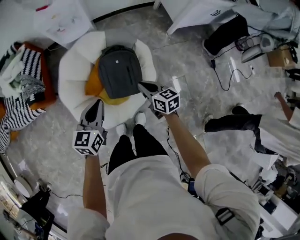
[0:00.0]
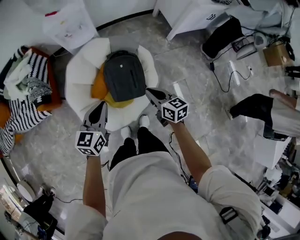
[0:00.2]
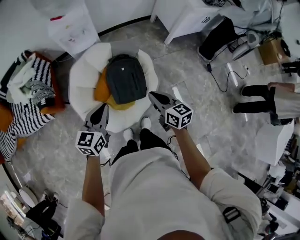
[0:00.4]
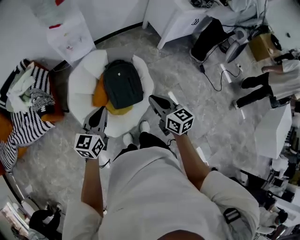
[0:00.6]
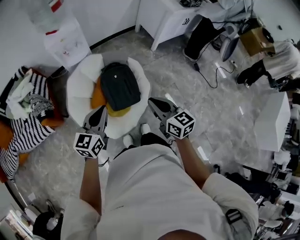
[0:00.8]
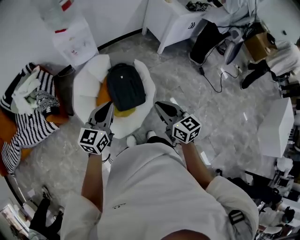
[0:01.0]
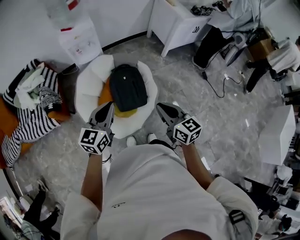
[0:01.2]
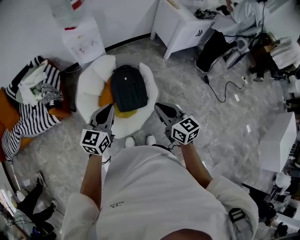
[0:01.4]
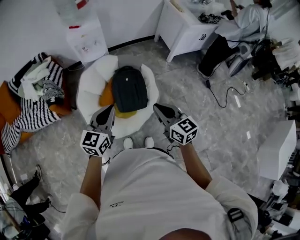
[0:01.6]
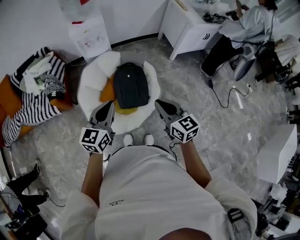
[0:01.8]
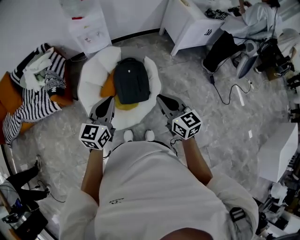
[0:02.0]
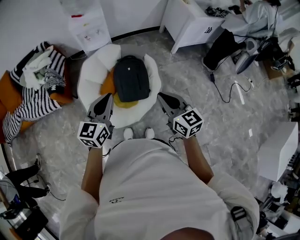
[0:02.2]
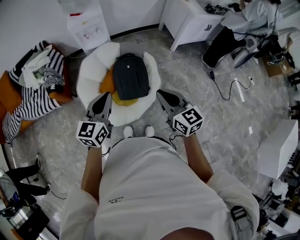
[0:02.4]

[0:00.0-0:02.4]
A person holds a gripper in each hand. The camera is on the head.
0:00.0 to 0:01.2: The right gripper goes approximately 30 cm upward and backward, and changes its angle by about 20 degrees, while the left gripper moves upward and backward, about 20 cm.
0:01.2 to 0:02.4: The grippers stay close to where they were, moving slightly.

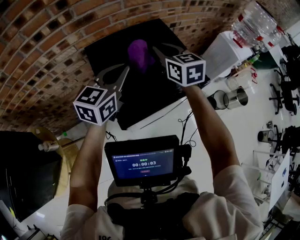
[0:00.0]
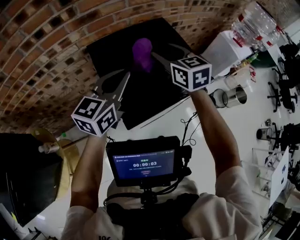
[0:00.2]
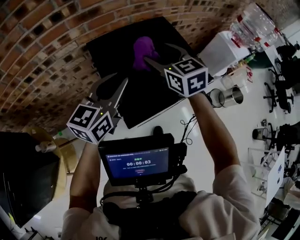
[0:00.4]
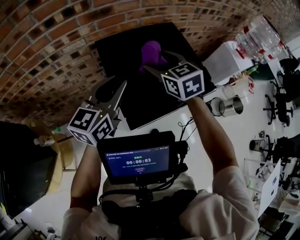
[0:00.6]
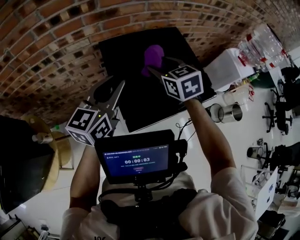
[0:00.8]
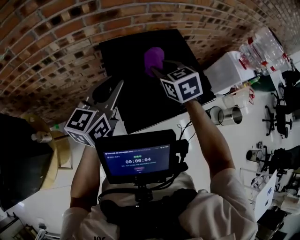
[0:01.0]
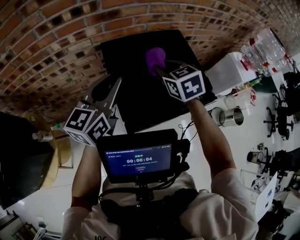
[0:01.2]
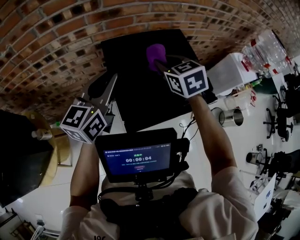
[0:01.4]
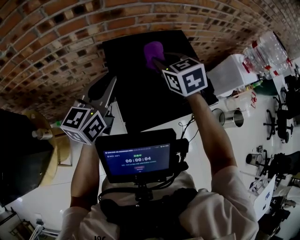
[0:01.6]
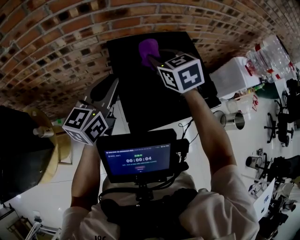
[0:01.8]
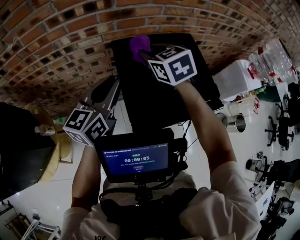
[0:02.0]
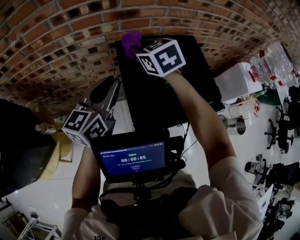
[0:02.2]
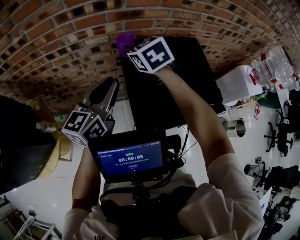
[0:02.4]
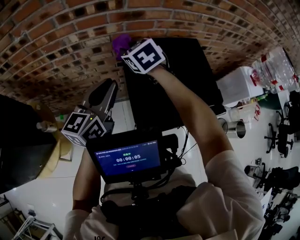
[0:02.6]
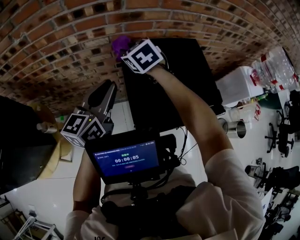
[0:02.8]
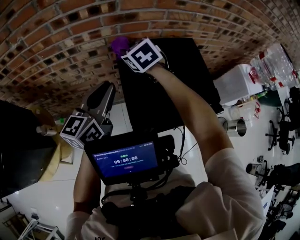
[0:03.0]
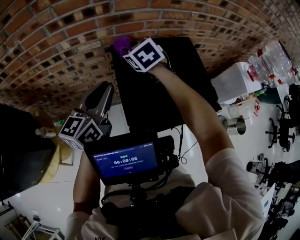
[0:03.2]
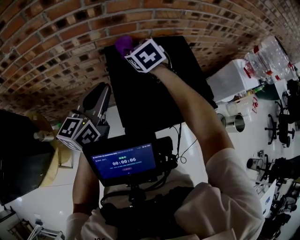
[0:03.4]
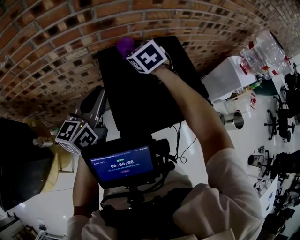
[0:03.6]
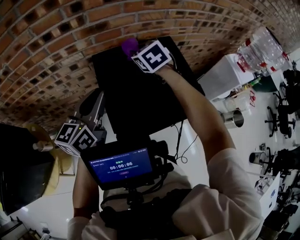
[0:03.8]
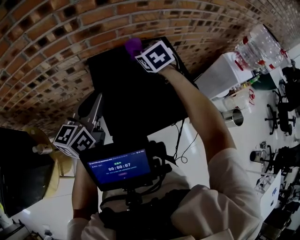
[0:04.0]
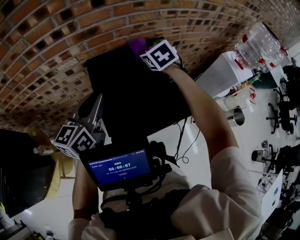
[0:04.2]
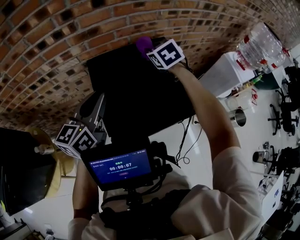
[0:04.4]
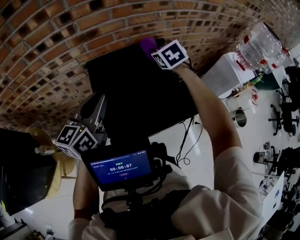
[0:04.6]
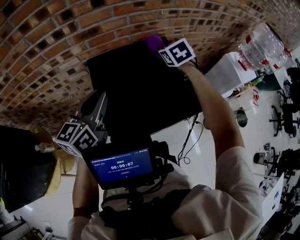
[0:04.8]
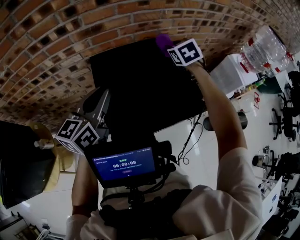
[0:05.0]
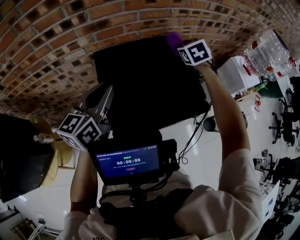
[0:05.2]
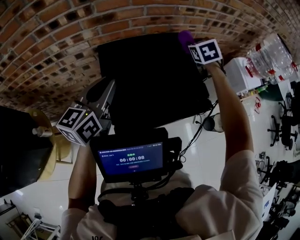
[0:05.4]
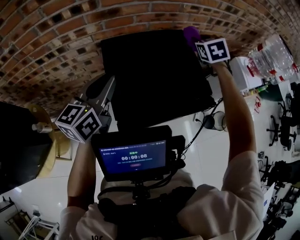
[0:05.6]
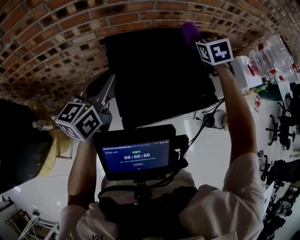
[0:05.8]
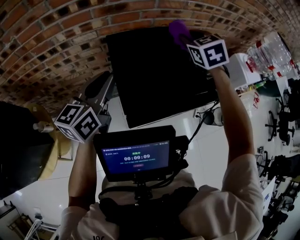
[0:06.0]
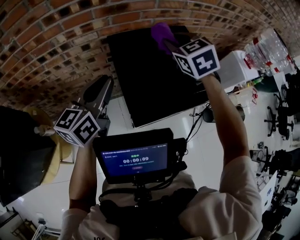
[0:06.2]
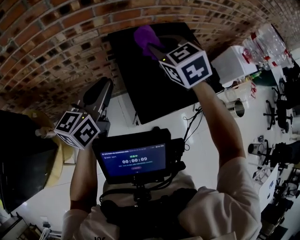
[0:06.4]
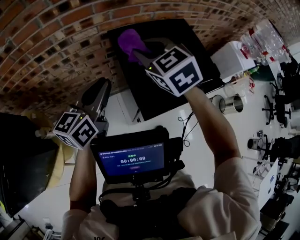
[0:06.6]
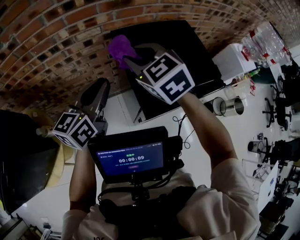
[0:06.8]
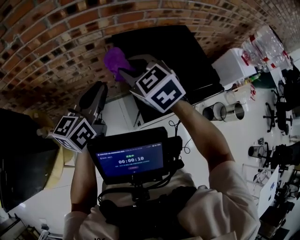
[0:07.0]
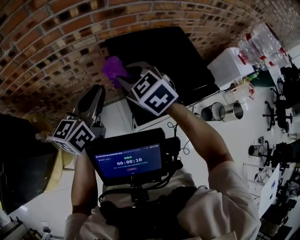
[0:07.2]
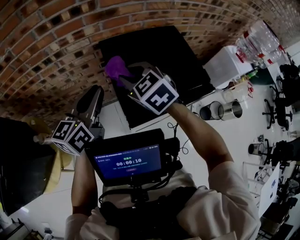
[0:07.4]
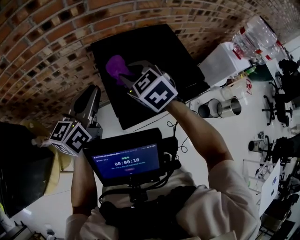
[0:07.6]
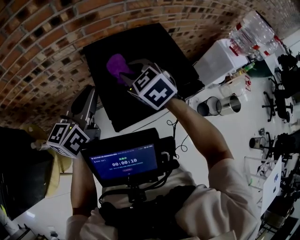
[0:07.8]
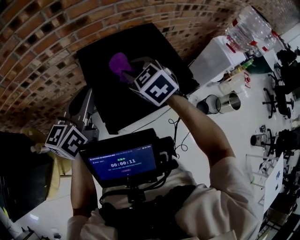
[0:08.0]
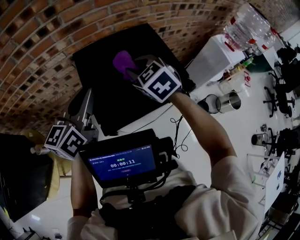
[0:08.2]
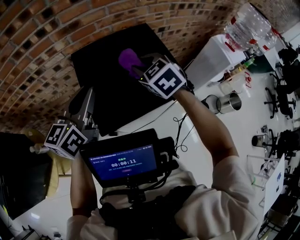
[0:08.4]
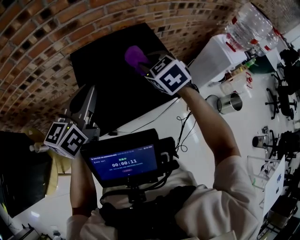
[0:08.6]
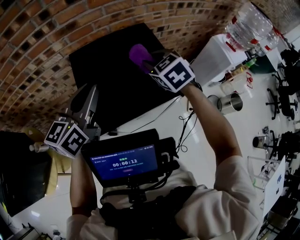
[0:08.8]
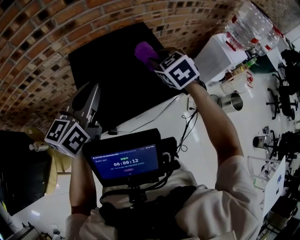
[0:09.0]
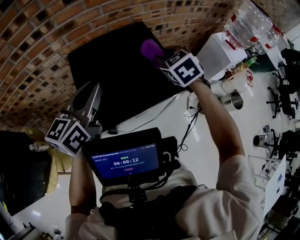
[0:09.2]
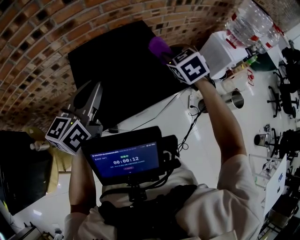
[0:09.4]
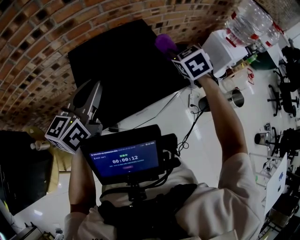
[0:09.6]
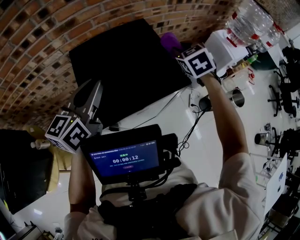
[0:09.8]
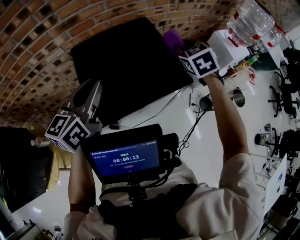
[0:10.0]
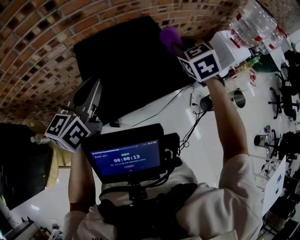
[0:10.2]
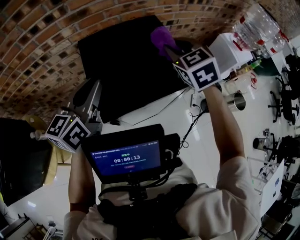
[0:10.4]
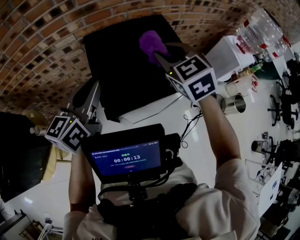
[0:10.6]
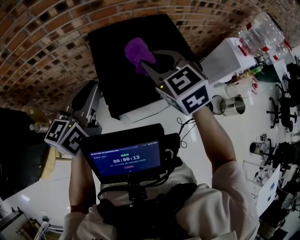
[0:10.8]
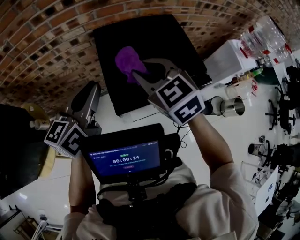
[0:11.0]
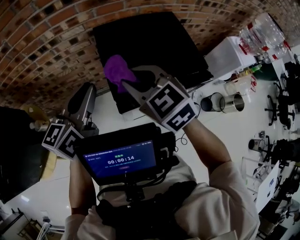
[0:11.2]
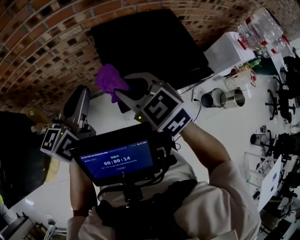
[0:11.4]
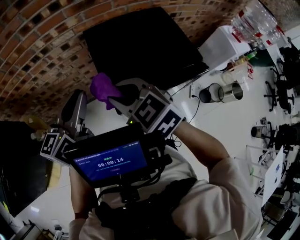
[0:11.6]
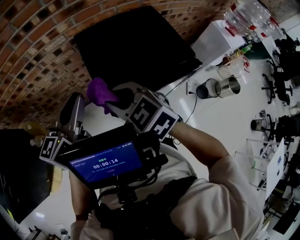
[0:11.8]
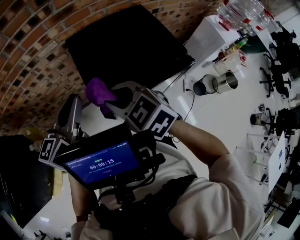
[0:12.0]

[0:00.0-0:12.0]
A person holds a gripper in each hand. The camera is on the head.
0:00.0 to 0:01.6: Both grippers travel together to the left, about 10 cm. The right gripper turns by roughly 20 degrees, and opens, then closes again. Meanwhile the left gripper changes its angle by about 20 degrees.
0:01.6 to 0:03.0: The right gripper heads to the left and forward, covering about 15 cm.
0:03.0 to 0:04.4: The left gripper goes approximately 5 cm to the right; the right gripper shifts approximately 20 cm to the right.
0:04.4 to 0:06.0: The left gripper ends up approximately 5 cm from where it was; the right gripper goes about 10 cm upward and backward, and goes to the right and returns, some 10 cm each way.
0:06.0 to 0:07.6: The right gripper heads to the left and backward, covering approximately 20 cm.
0:07.6 to 0:09.0: The left gripper goes roughly 10 cm to the right; the right gripper goes about 20 cm to the right.
0:09.0 to 0:10.4: The right gripper travels upward by some 5 cm, and goes to the right and returns, some 10 cm each way.
0:10.4 to 0:12.0: The right gripper moves to the left and backward, approximately 30 cm, and turns by approximately 30 degrees; the left gripper moves to the left, approximately 10 cm.

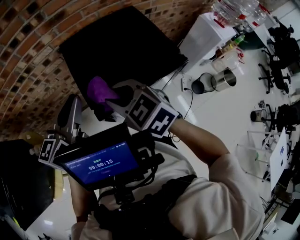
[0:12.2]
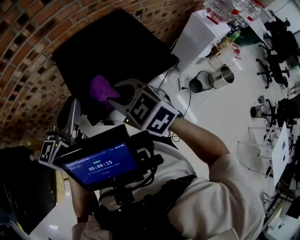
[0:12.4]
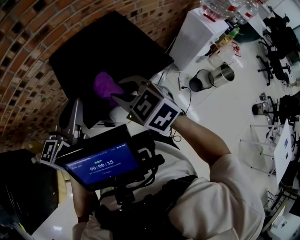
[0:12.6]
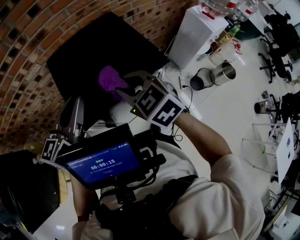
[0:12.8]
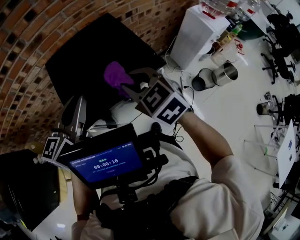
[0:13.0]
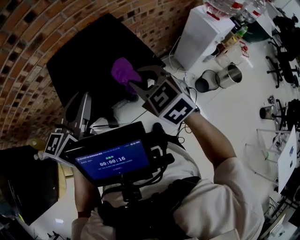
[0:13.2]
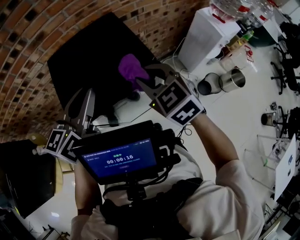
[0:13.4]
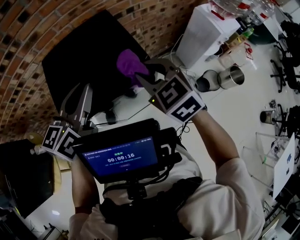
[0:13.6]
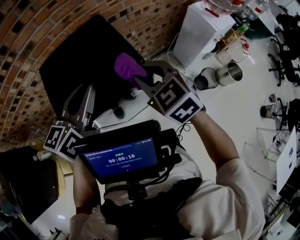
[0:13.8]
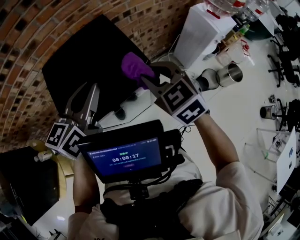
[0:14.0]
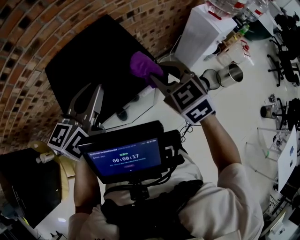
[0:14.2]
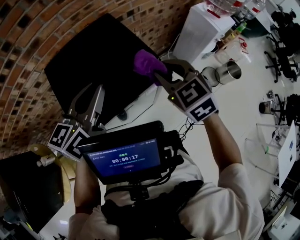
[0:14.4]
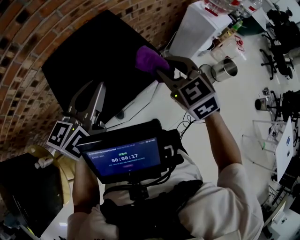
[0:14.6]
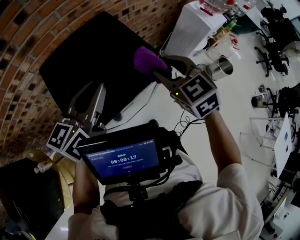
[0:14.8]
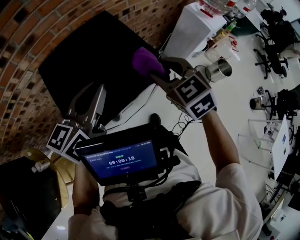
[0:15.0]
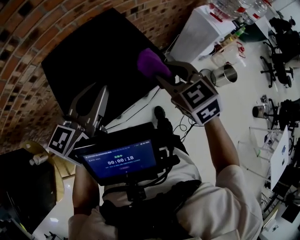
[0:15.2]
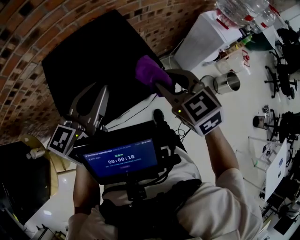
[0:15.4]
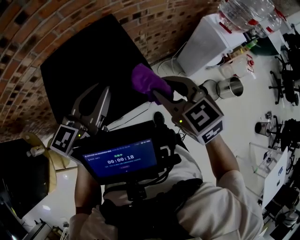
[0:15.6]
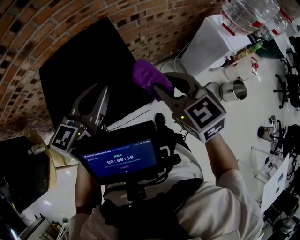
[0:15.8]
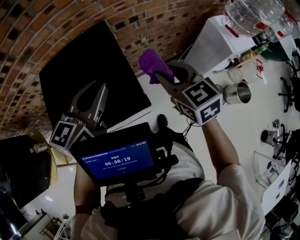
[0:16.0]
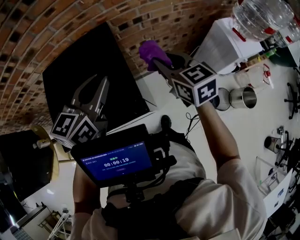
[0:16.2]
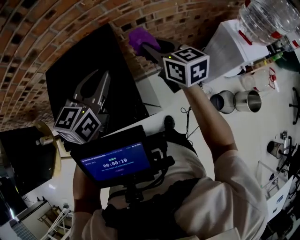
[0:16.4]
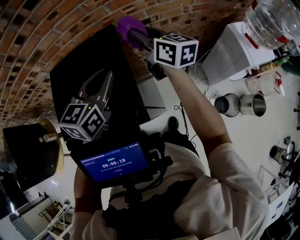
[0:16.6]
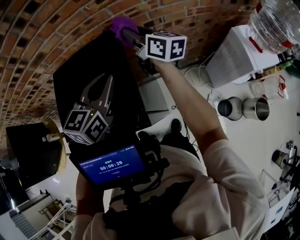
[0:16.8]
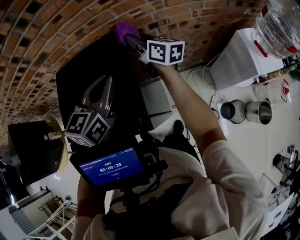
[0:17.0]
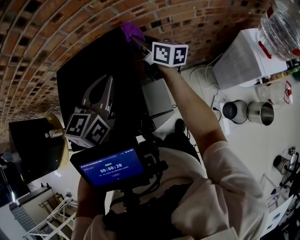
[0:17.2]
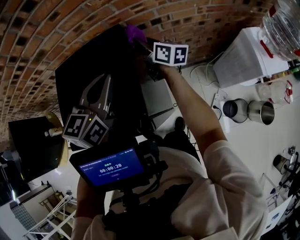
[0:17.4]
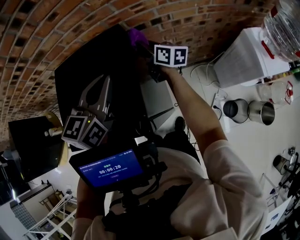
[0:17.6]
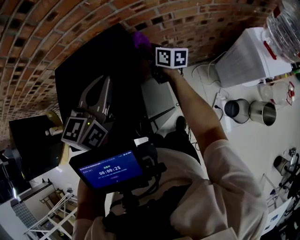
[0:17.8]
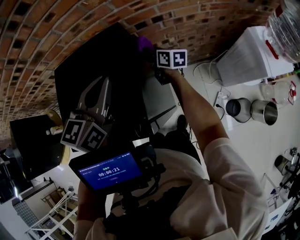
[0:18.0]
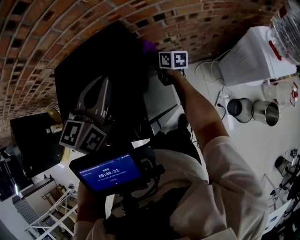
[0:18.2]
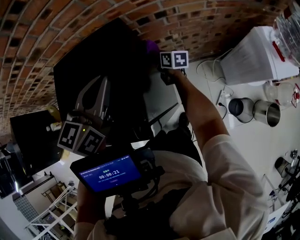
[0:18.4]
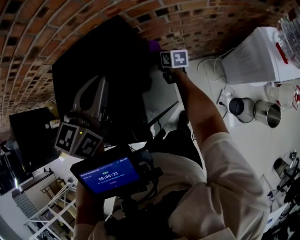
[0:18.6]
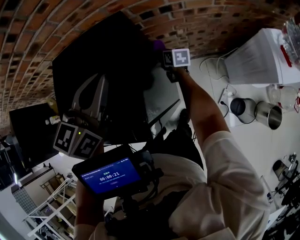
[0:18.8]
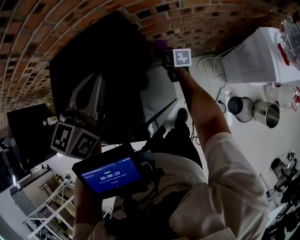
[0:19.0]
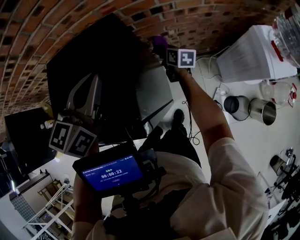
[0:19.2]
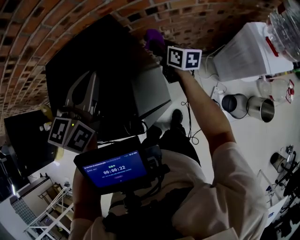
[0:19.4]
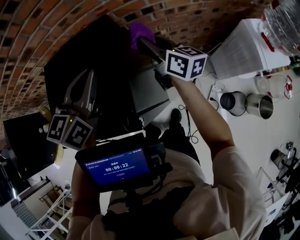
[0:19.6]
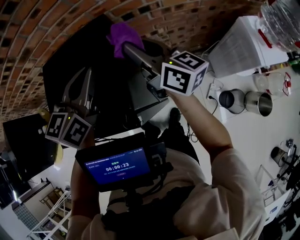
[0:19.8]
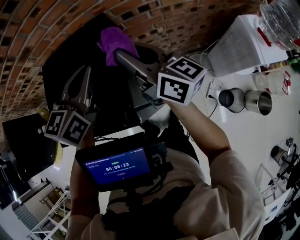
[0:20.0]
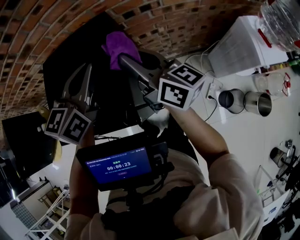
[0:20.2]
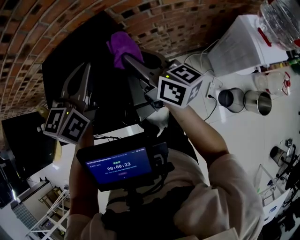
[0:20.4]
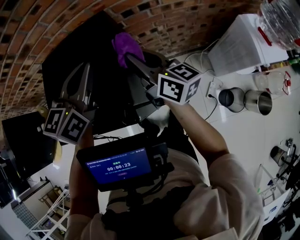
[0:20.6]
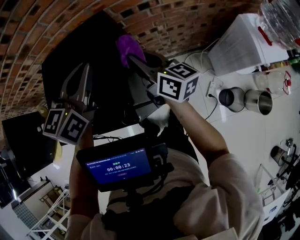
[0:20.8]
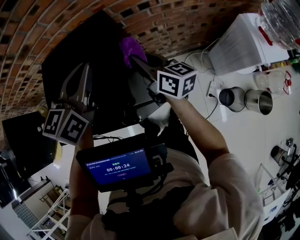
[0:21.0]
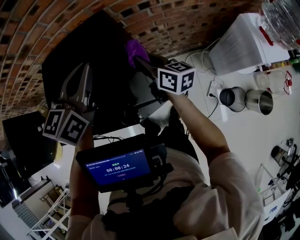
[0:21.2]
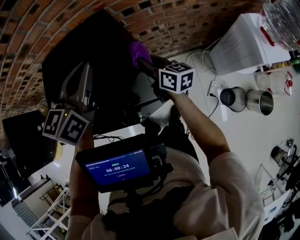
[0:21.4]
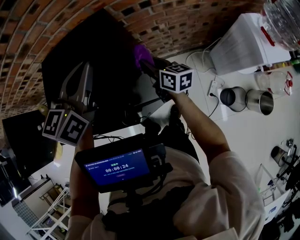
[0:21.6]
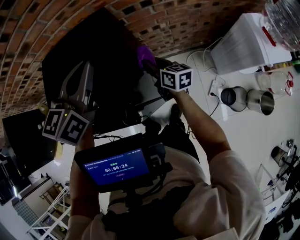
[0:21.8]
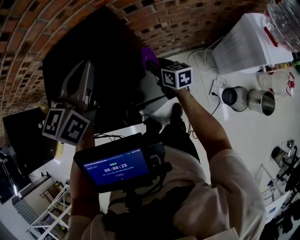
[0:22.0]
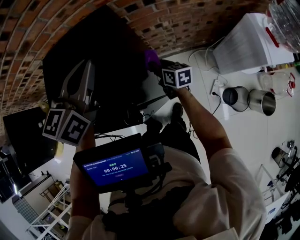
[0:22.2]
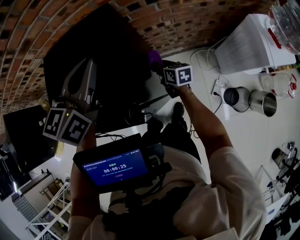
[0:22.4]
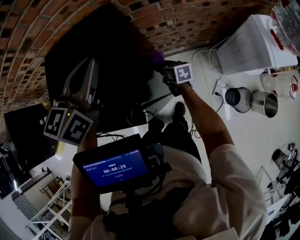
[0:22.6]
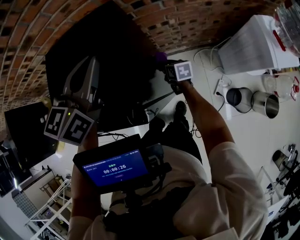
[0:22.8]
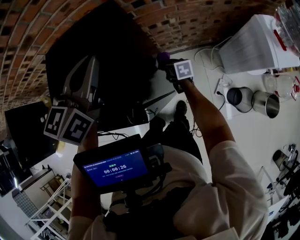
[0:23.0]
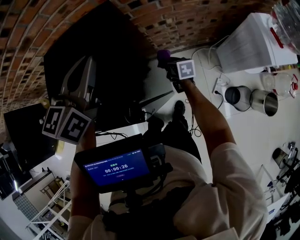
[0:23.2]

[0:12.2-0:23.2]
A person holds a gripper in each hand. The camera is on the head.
0:12.2 to 0:13.8: Both grippers travel together to the right, about 20 cm.
0:13.8 to 0:15.4: The grippers stay close to where they were, moving slightly.
0:15.4 to 0:17.0: The right gripper travels forward by roughly 30 cm, and tips its fingers upward by some 30 degrees. The left gripper is displaced forward and to the right by roughly 15 cm, and rotates about 30 degrees.
0:17.0 to 0:18.4: The right gripper shifts some 25 cm downward, and rotates some 30 degrees.
0:18.4 to 0:20.0: The right gripper heads upward and backward, covering some 35 cm, and points its fingers approximately 30 degrees further upward.
0:20.0 to 0:21.6: The right gripper travels downward by about 20 cm, and turns by some 20 degrees.
0:21.6 to 0:23.2: The right gripper moves downward, approximately 15 cm, and turns by roughly 30 degrees.
